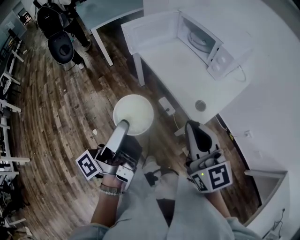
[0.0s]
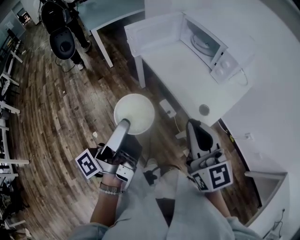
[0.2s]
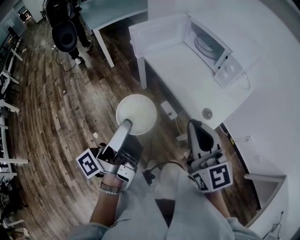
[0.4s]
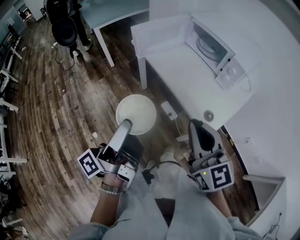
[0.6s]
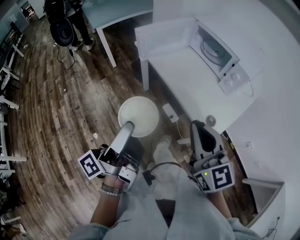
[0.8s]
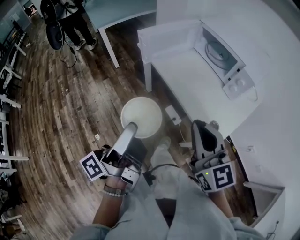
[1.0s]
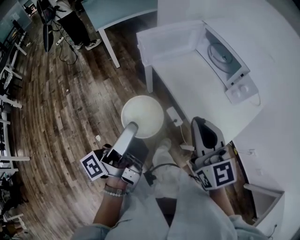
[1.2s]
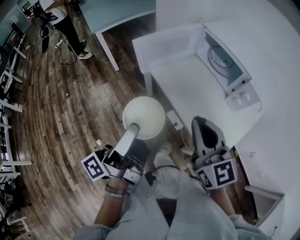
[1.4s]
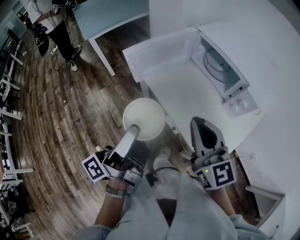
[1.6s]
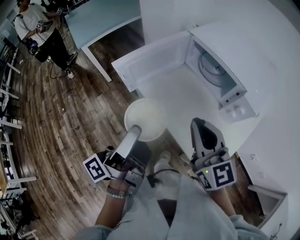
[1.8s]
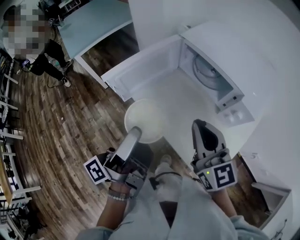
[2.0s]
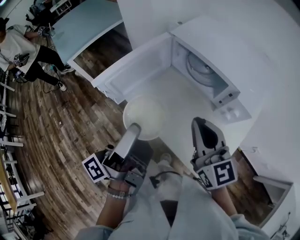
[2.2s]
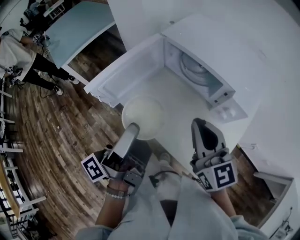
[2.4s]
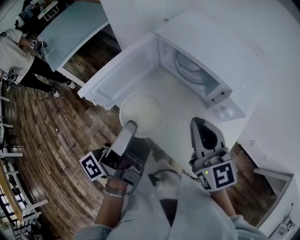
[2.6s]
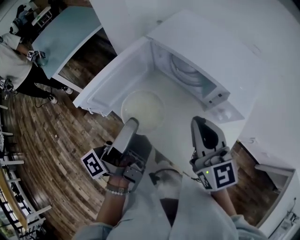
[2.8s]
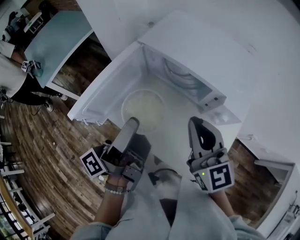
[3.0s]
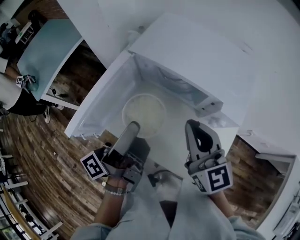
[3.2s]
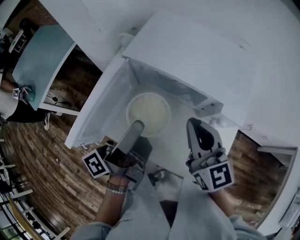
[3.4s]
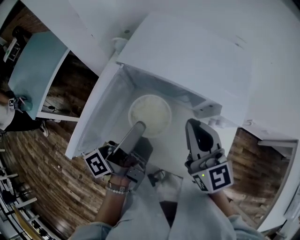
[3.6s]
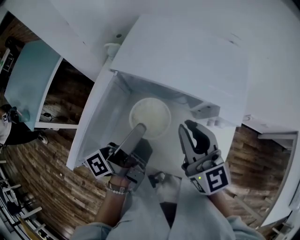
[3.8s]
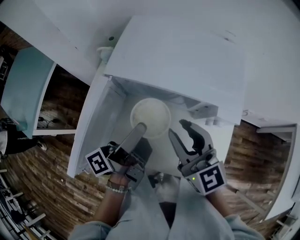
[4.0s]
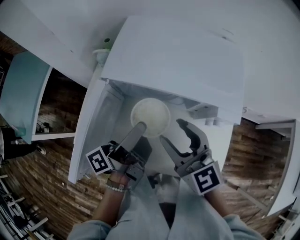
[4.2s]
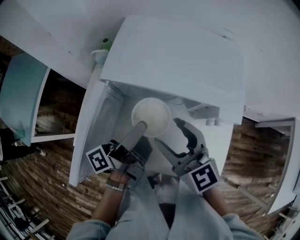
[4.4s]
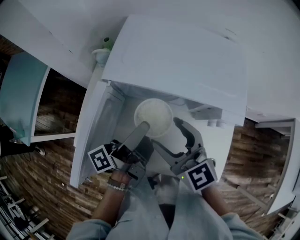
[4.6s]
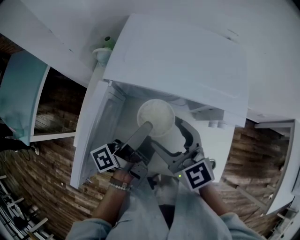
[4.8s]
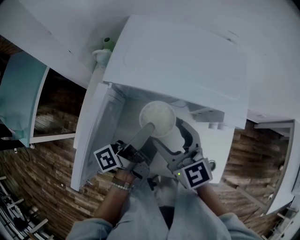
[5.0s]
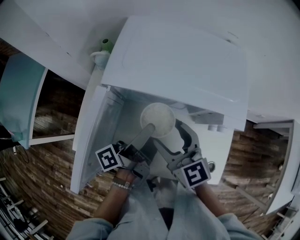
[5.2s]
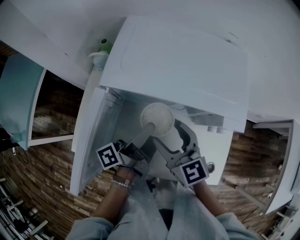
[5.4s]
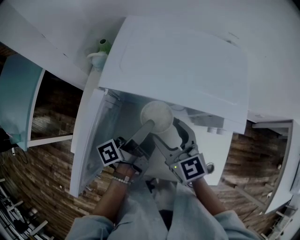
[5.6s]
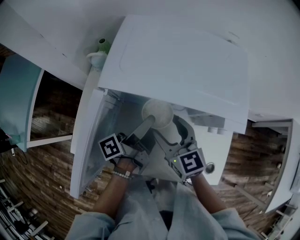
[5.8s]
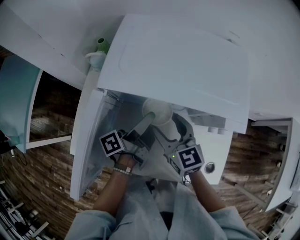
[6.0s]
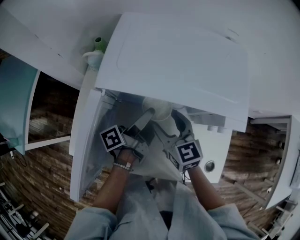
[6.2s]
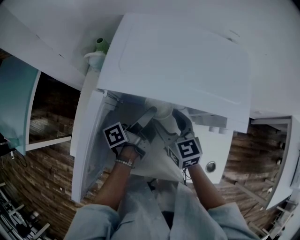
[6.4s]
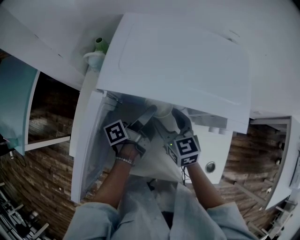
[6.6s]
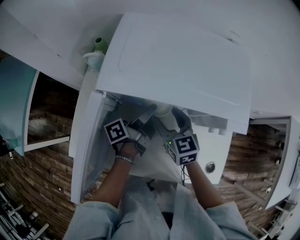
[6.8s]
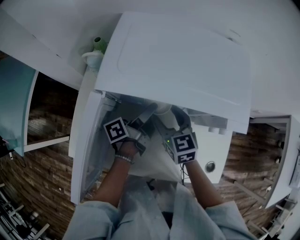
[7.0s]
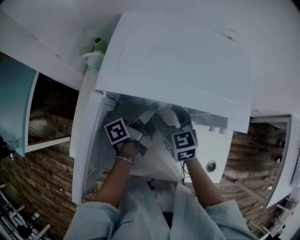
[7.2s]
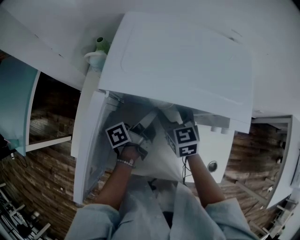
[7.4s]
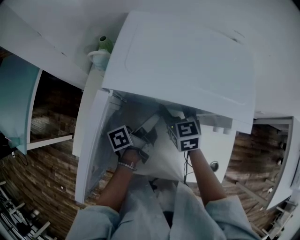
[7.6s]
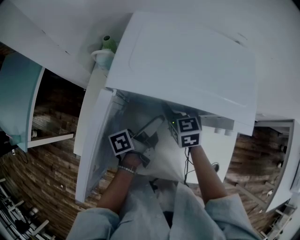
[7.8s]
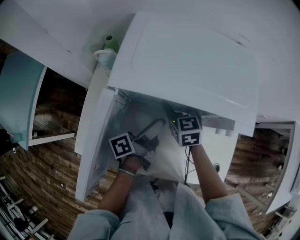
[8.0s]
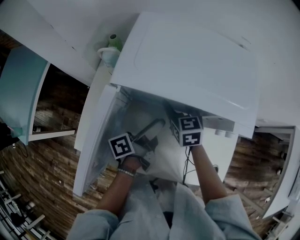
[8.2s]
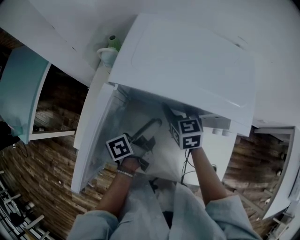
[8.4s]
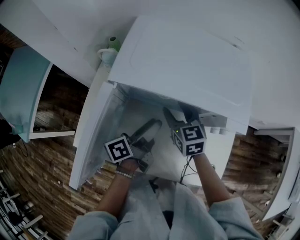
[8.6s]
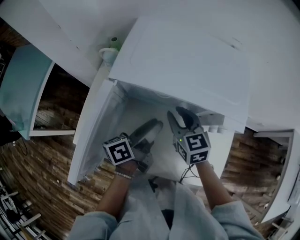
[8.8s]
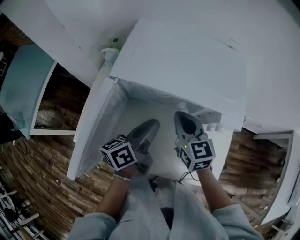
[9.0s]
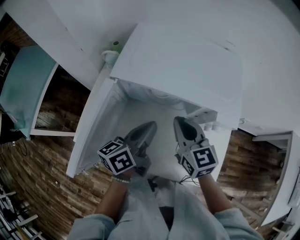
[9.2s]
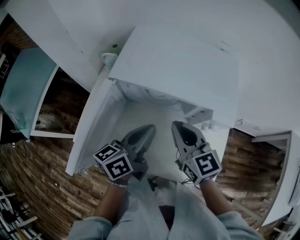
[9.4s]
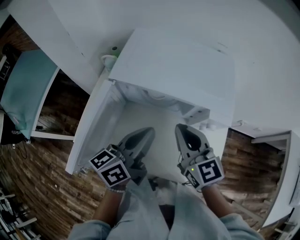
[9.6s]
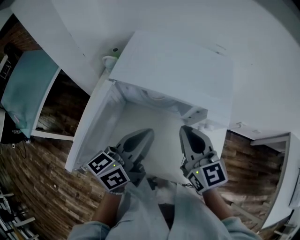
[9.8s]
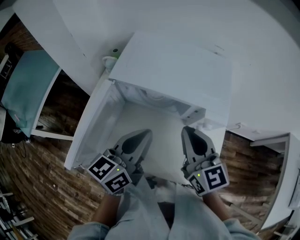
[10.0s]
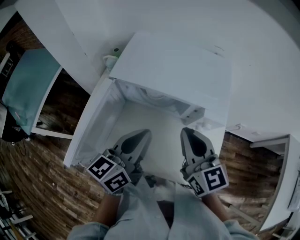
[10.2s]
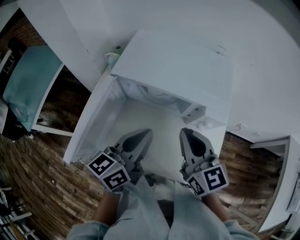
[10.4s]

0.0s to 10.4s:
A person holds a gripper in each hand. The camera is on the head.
0.0s to 1.4s: The right gripper moves approximately 20 cm.
1.4s to 3.0s: The right gripper changes place by about 20 cm, and swivels approximately 20 degrees.
3.0s to 4.4s: The right gripper shifts by some 10 cm, and opens.
4.4s to 6.0s: The right gripper is displaced downward by about 10 cm.
6.0s to 7.4s: The right gripper moves some 5 cm.
7.4s to 9.0s: The right gripper shifts some 5 cm upward, and closes its fingers.
9.0s to 10.4s: The right gripper travels upward by roughly 10 cm.

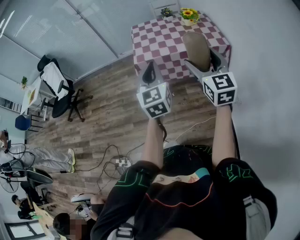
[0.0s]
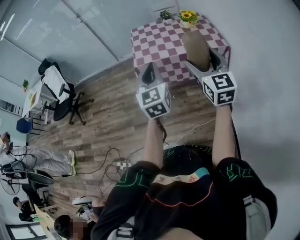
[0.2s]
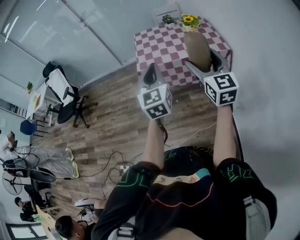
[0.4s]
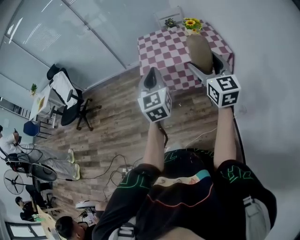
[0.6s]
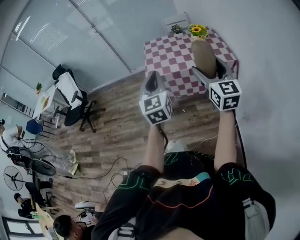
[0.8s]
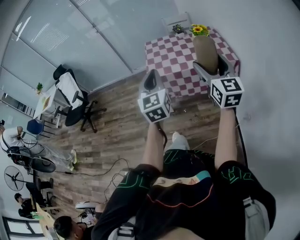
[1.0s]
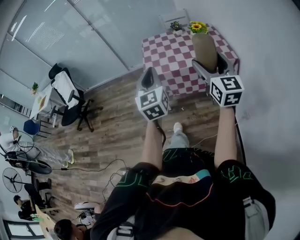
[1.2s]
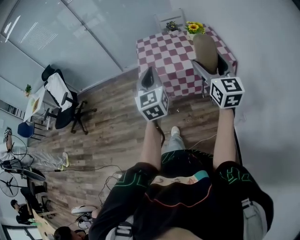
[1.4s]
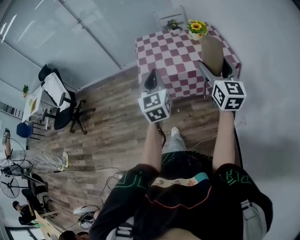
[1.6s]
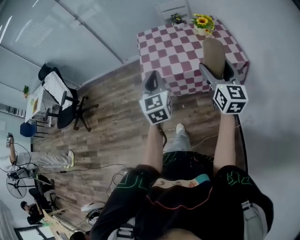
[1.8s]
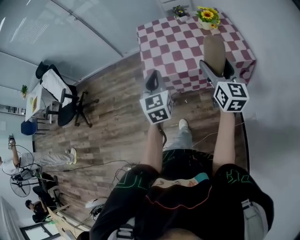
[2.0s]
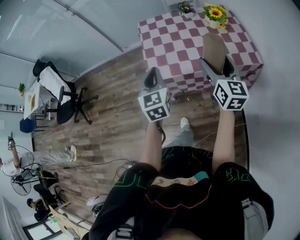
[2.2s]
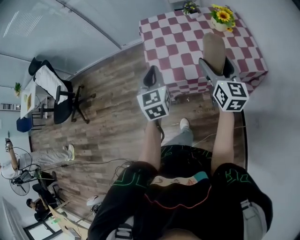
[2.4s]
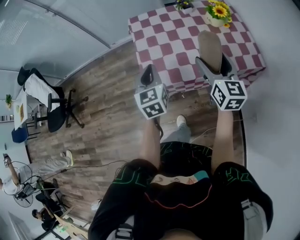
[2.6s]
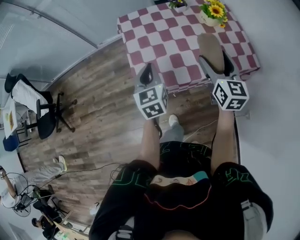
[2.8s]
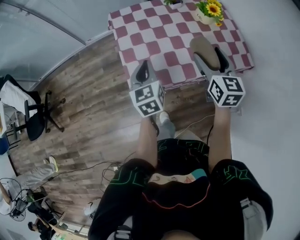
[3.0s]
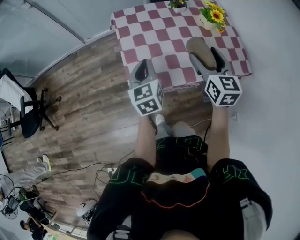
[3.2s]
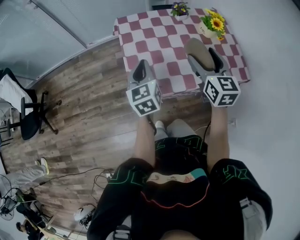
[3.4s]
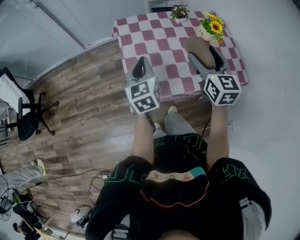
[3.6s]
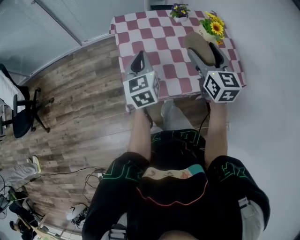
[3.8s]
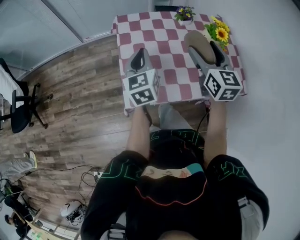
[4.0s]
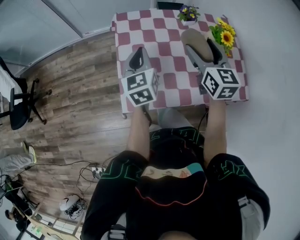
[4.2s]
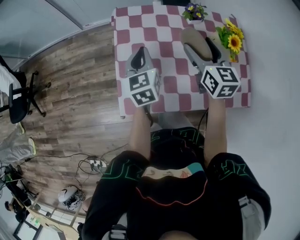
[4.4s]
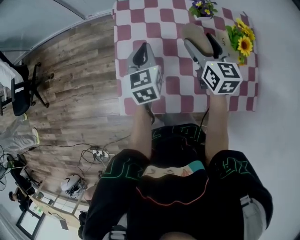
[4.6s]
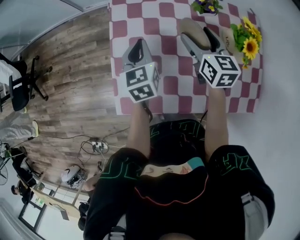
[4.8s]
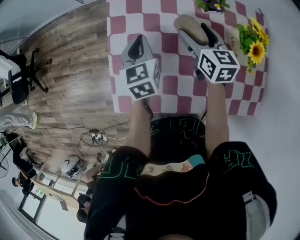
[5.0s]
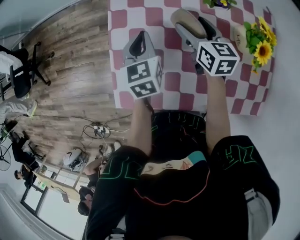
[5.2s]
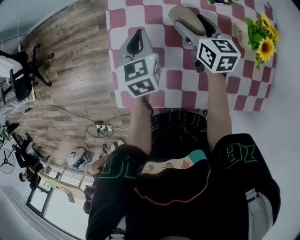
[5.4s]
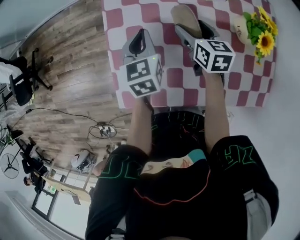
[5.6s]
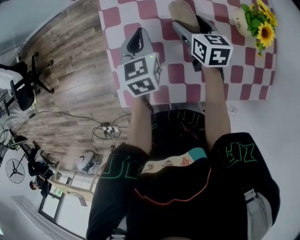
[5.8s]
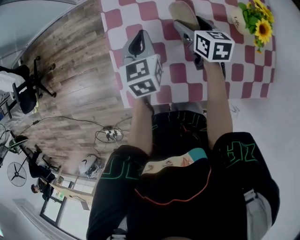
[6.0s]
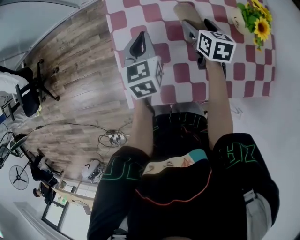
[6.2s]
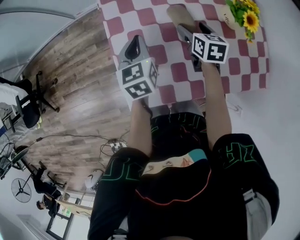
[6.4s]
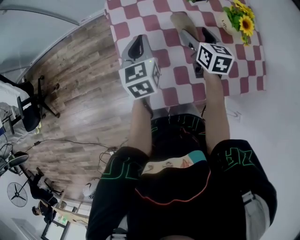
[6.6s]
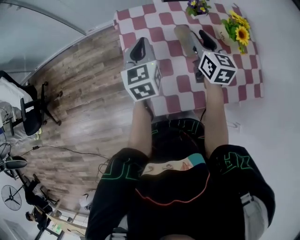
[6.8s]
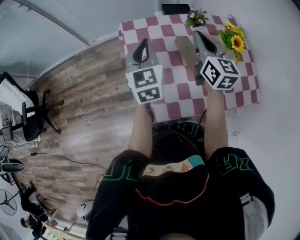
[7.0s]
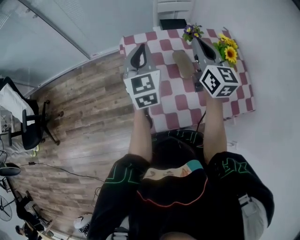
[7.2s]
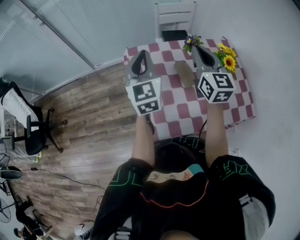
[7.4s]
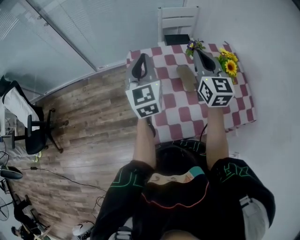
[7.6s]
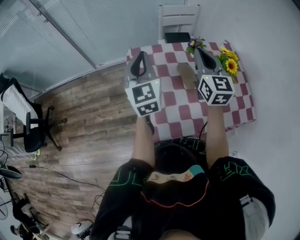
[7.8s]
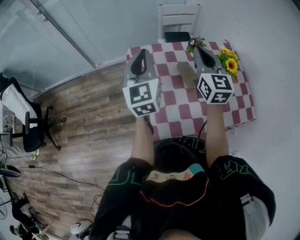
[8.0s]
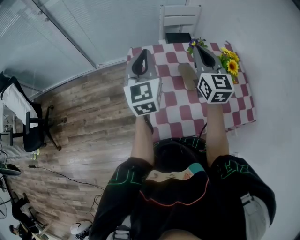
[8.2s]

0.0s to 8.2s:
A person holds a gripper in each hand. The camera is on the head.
0.0s to 1.6s: Both grippers move forward, approximately 15 cm.
1.6s to 3.2s: Both grippers move forward and downward, roughly 35 cm. The left gripper turns by some 20 degrees; the right gripper turns by approximately 20 degrees.
3.2s to 5.0s: The grippers both shift forward and downward by some 30 cm. The right gripper rotates approximately 30 degrees.
5.0s to 6.6s: The right gripper shifts roughly 5 cm backward. The left gripper is displaced upward by about 5 cm.
6.6s to 8.2s: Both grippers travel together upward, about 20 cm. The right gripper changes its angle by approximately 40 degrees, and closes its fingers, while the left gripper turns by some 30 degrees.

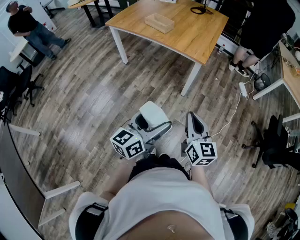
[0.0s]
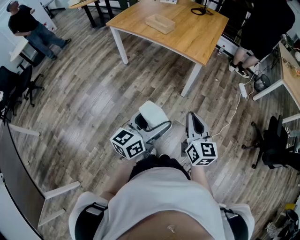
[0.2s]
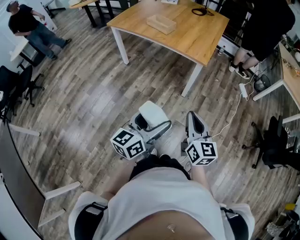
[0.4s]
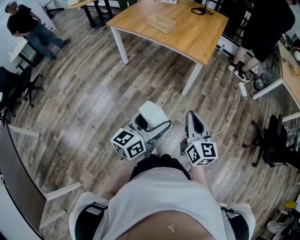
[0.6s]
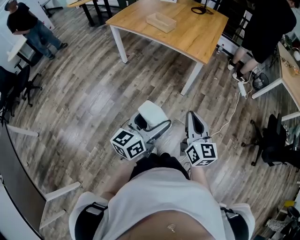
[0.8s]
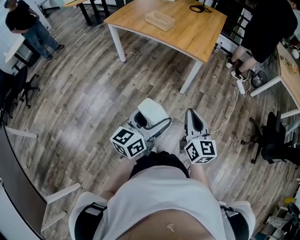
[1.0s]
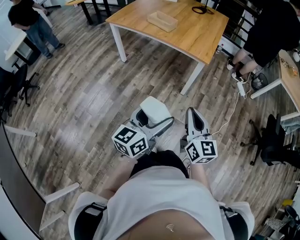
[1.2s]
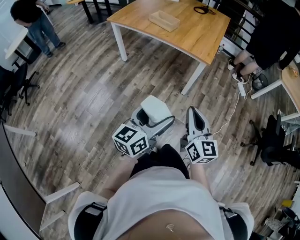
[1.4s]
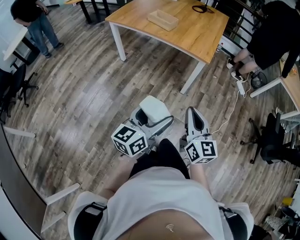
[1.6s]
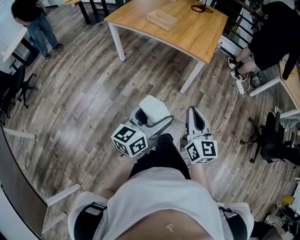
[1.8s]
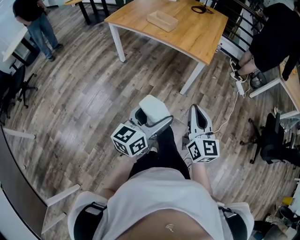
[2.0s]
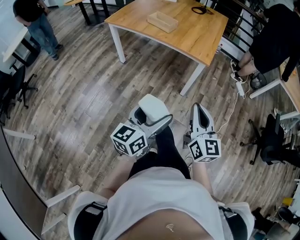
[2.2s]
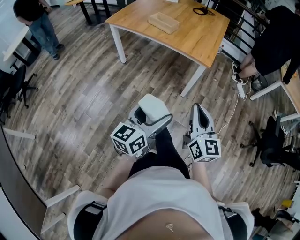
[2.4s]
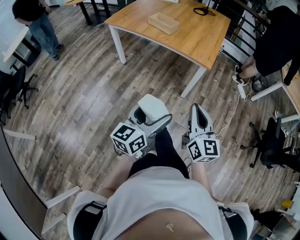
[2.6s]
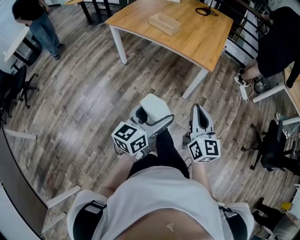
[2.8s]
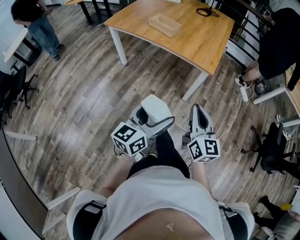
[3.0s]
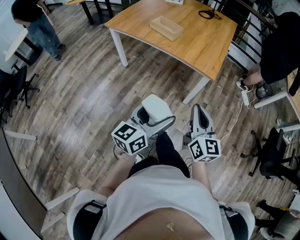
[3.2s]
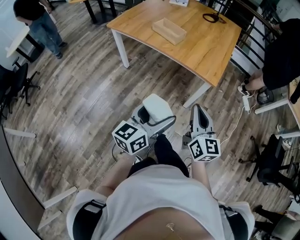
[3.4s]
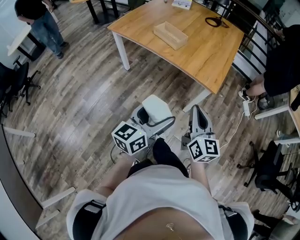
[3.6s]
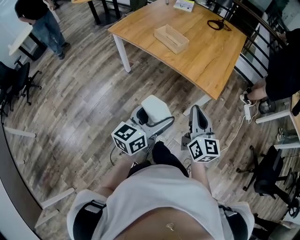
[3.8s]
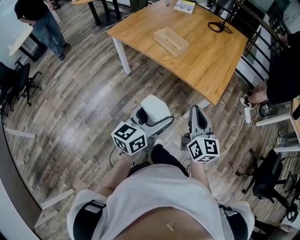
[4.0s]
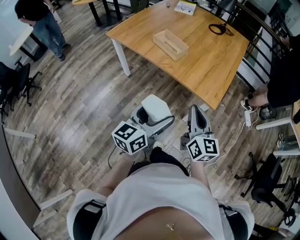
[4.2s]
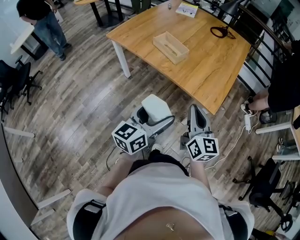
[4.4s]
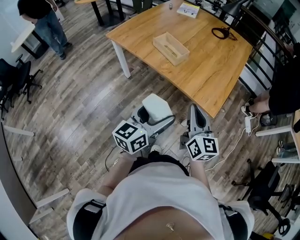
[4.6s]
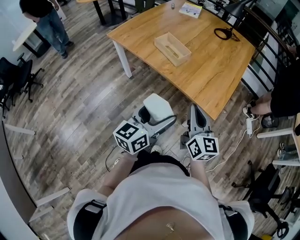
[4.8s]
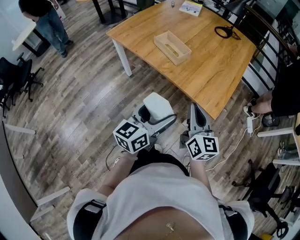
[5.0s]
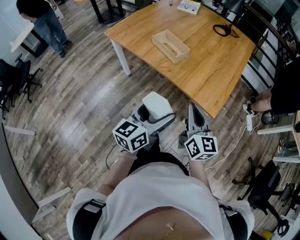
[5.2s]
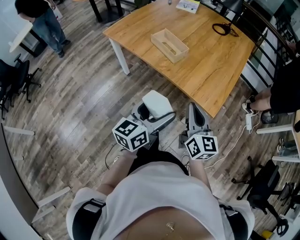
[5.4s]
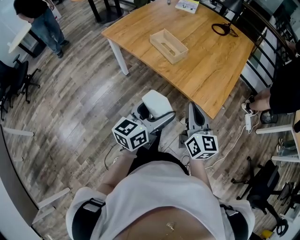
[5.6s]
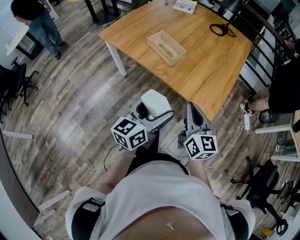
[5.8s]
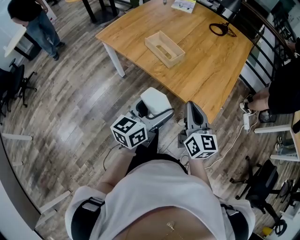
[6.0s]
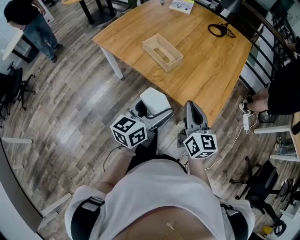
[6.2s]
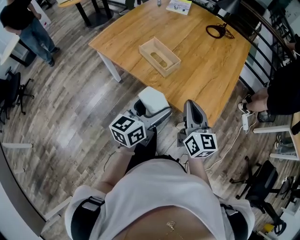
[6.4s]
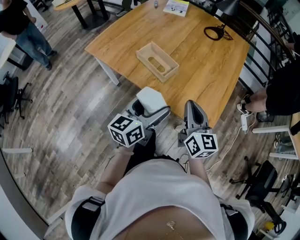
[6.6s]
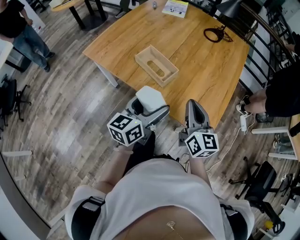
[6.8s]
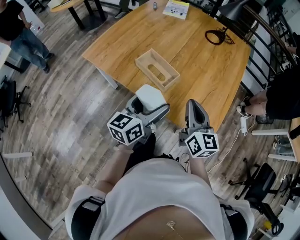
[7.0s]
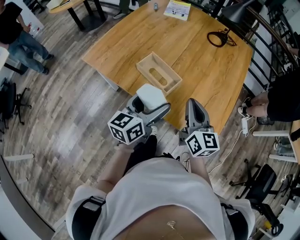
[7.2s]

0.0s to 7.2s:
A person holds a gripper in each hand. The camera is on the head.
0.0s to 1.4s: The grippers both shift to the left by some 5 cm.
1.4s to 2.8s: The two grippers go some 5 cm forward.
2.8s to 4.4s: Both grippers move forward, roughly 25 cm.
4.4s to 5.8s: Both grippers travel together forward, about 5 cm.
5.8s to 7.2s: The grippers both shift forward by about 20 cm.
